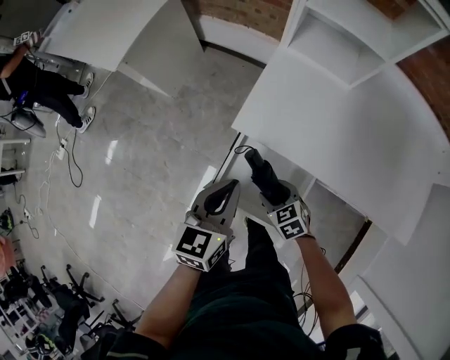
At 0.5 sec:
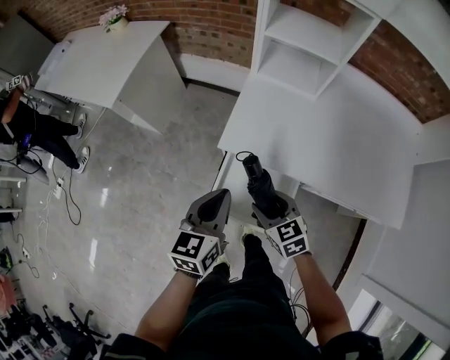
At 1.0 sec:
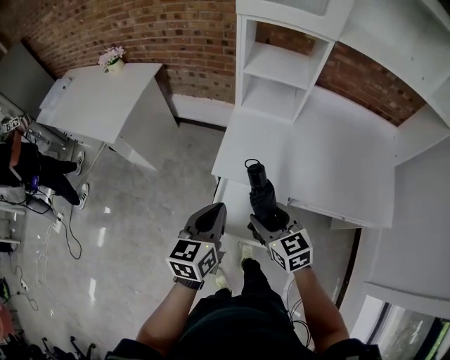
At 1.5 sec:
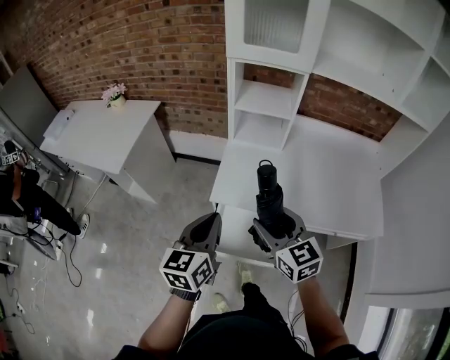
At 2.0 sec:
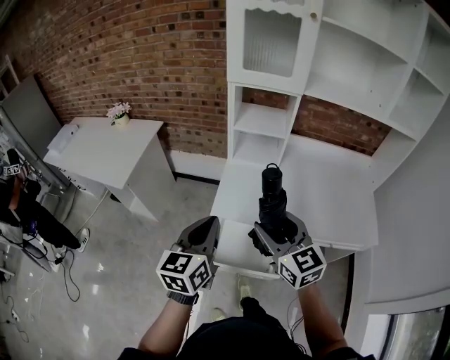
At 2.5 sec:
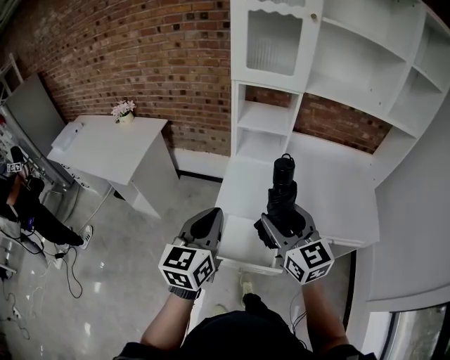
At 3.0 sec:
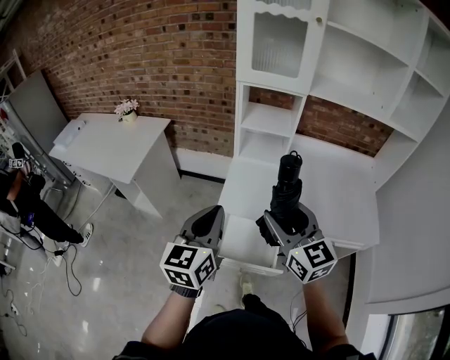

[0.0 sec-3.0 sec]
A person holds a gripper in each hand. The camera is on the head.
0.0 sec to 1.5 sec: The left gripper shifts roughly 20 cm upward. Meanwhile the right gripper is displaced upward by some 35 cm, and tilts its fingers roughly 40 degrees upward.
1.5 sec to 3.0 sec: The two grippers go approximately 10 cm upward.

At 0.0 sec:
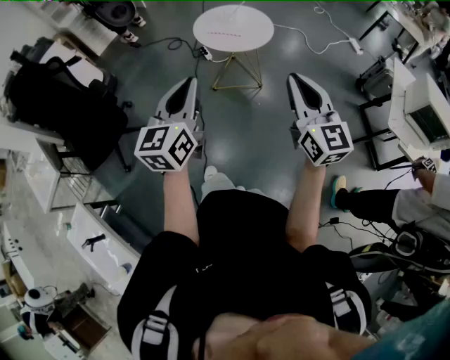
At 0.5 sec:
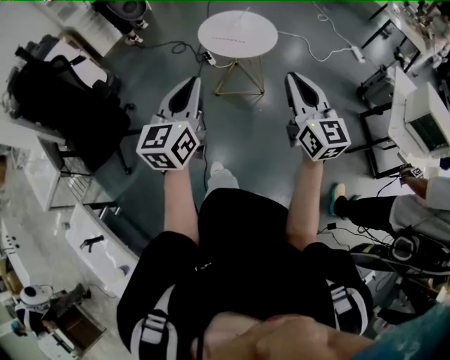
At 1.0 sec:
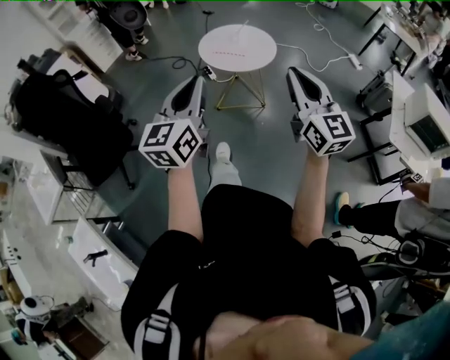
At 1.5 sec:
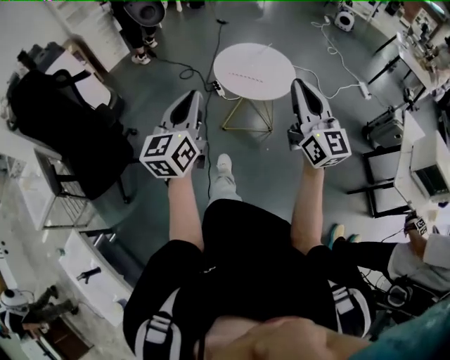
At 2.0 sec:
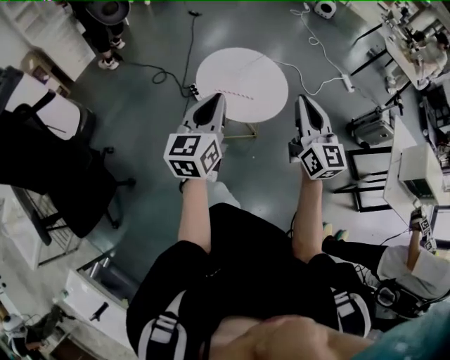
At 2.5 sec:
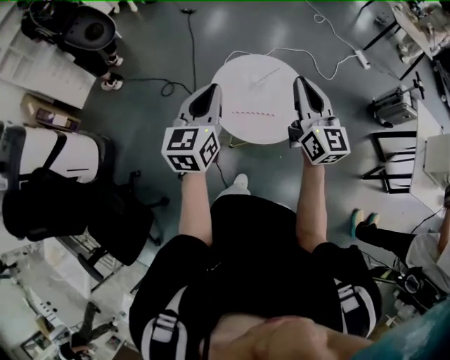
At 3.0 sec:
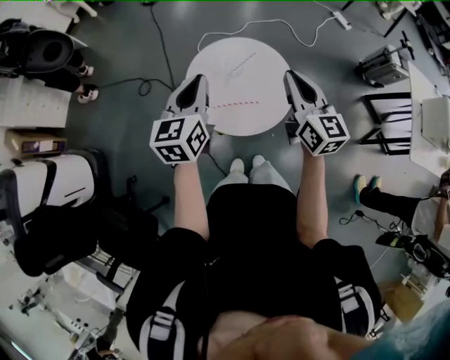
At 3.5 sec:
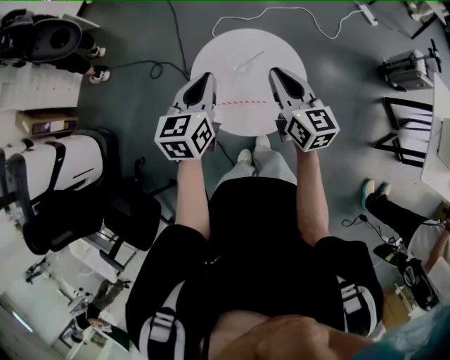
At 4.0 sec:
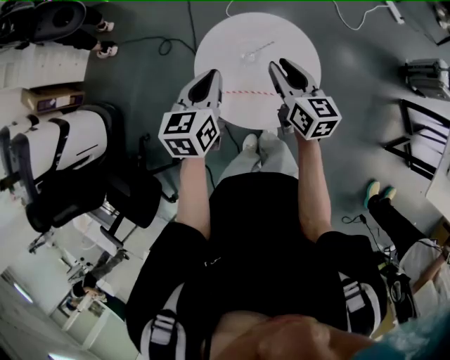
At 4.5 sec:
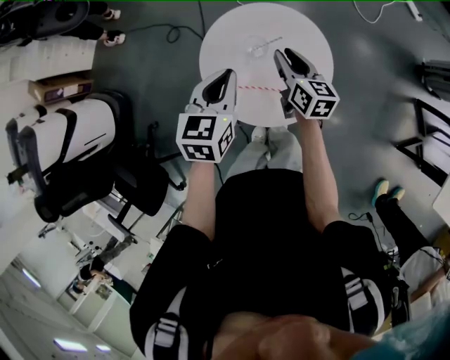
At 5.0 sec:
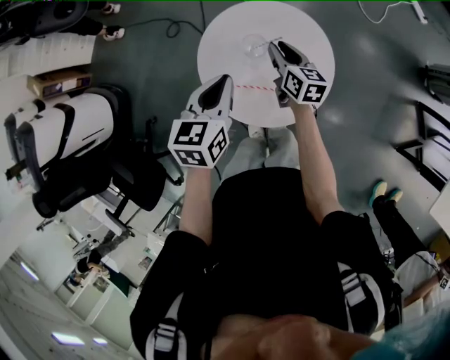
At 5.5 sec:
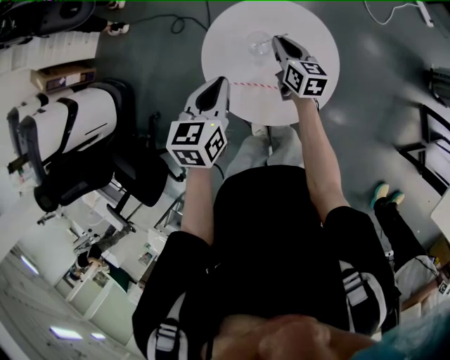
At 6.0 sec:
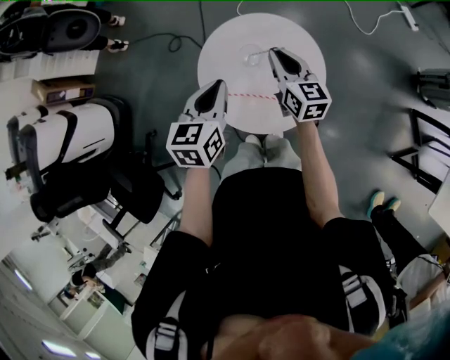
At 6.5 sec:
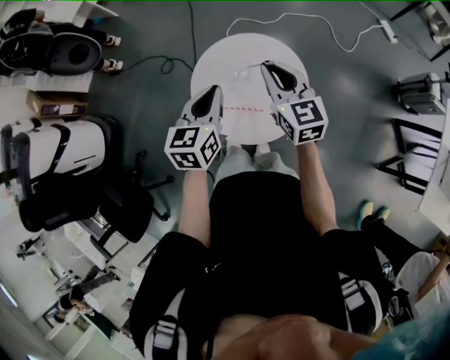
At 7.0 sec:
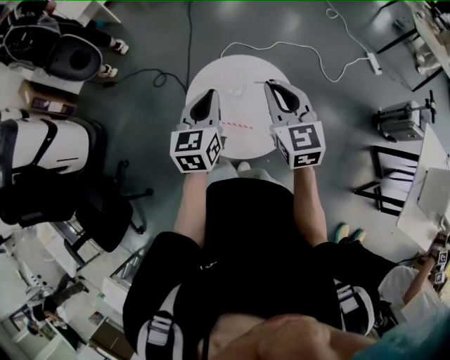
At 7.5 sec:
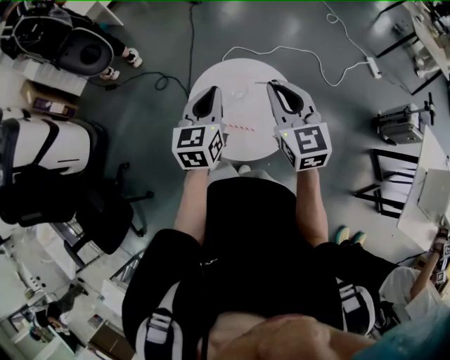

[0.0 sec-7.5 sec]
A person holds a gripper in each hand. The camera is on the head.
0.0 sec to 2.0 sec: Both grippers are carried forward, roughly 40 cm.
2.0 sec to 4.0 sec: The left gripper shifts approximately 40 cm forward, and swivels some 30 degrees; the right gripper goes some 40 cm forward and downward, rotates roughly 40 degrees, and opens up.
4.0 sec to 5.5 sec: The right gripper shifts some 15 cm downward and forward.
5.5 sec to 7.5 sec: The right gripper goes roughly 30 cm upward and backward, and rotates around the line of its fingers by roughly 40 degrees, counterclockwise from behind. Meanwhile the left gripper shifts about 10 cm upward, and changes its angle by about 20 degrees.

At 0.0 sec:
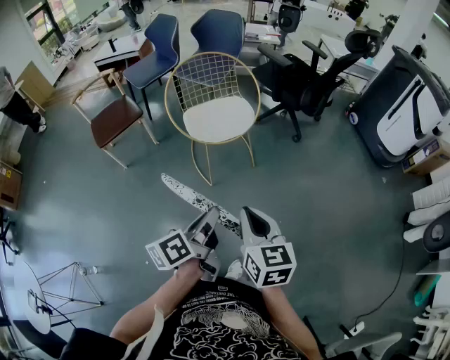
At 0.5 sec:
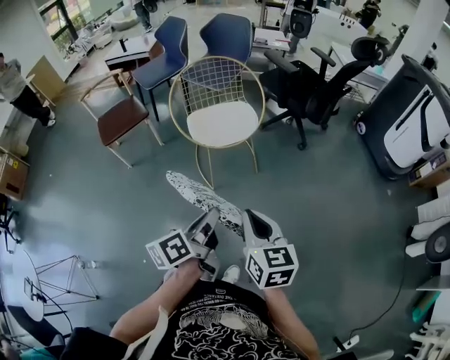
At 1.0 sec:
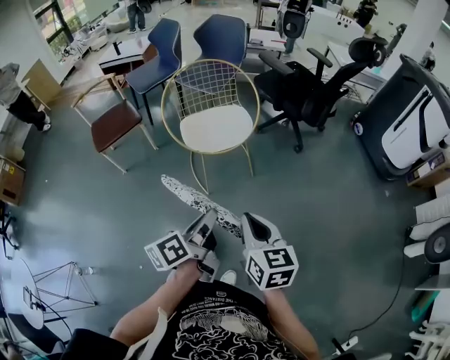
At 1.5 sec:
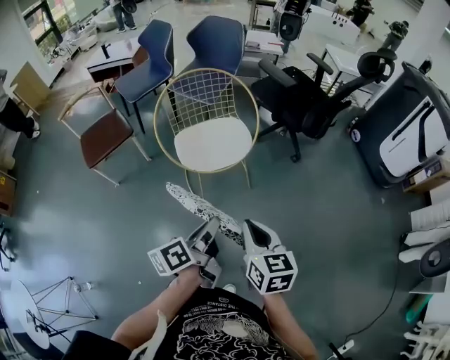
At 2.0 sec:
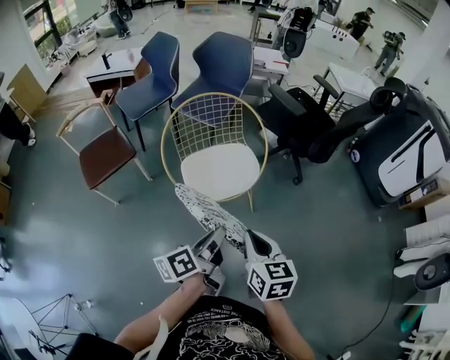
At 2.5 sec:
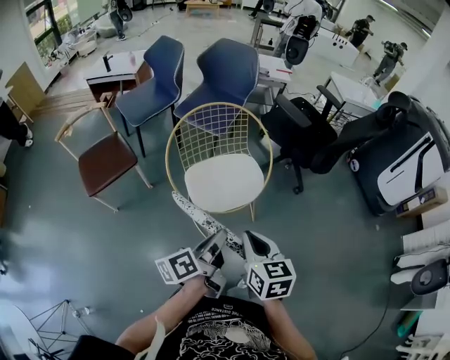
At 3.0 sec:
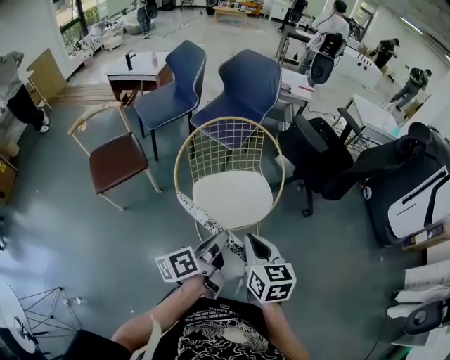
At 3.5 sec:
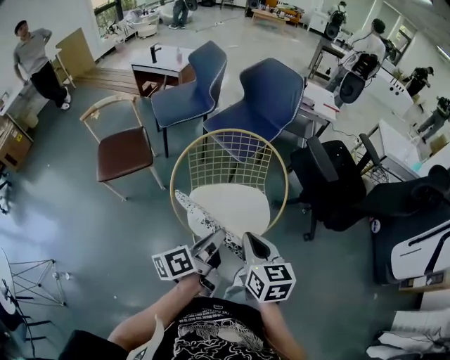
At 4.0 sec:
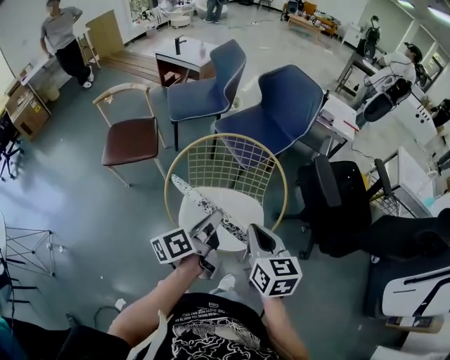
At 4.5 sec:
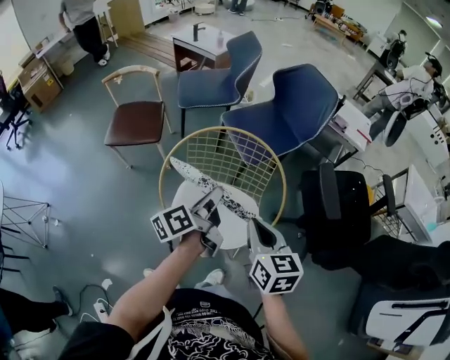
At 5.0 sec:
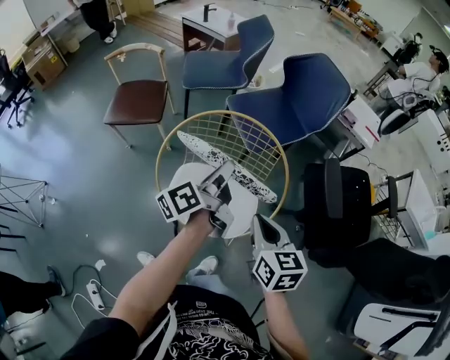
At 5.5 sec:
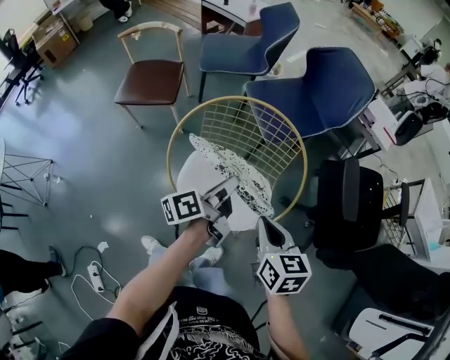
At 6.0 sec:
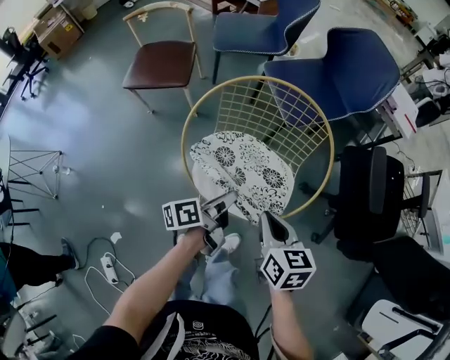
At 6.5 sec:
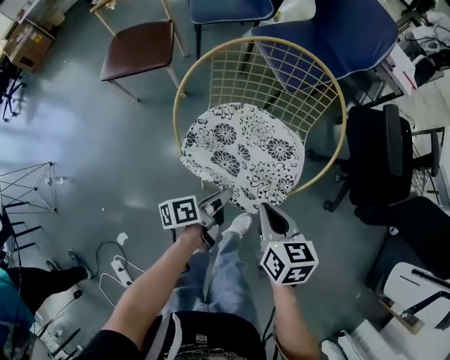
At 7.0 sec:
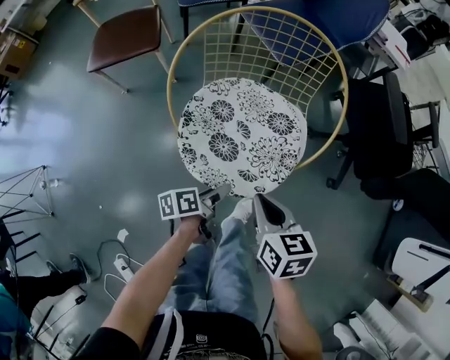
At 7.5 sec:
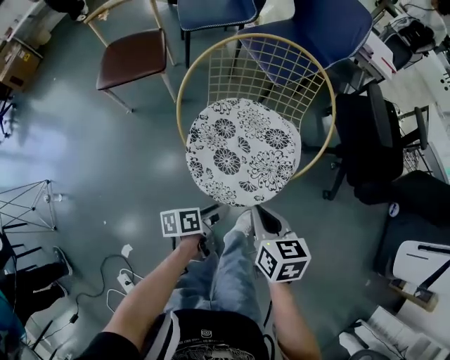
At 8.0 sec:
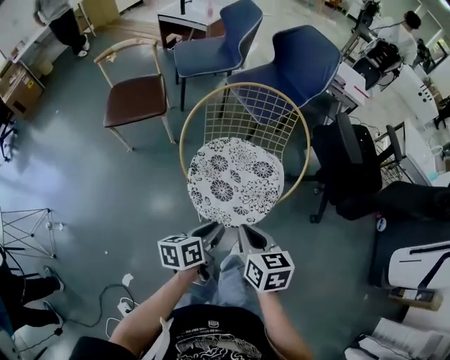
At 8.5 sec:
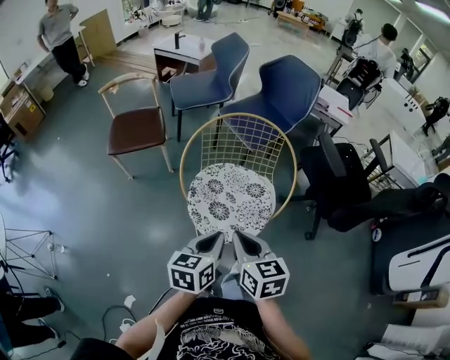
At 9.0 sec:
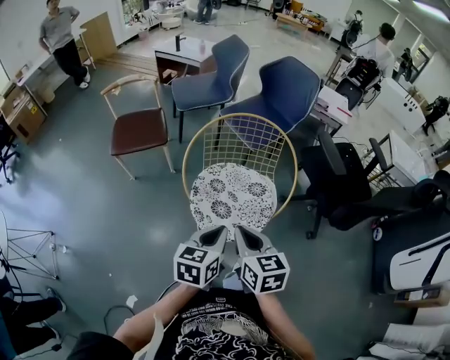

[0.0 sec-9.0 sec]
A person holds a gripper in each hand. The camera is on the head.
0.0 sec to 2.0 sec: The grippers both shift forward by roughly 25 cm.
2.0 sec to 4.5 sec: The left gripper shifts by some 35 cm, and rotates some 40 degrees; the right gripper moves some 35 cm, and rotates about 30 degrees.
4.5 sec to 7.0 sec: The right gripper is displaced downward, backward and to the left by approximately 25 cm, while the left gripper goes about 40 cm downward and backward, changes its angle by approximately 40 degrees, and opens its fingers.
7.0 sec to 9.0 sec: The right gripper shifts approximately 15 cm upward, while the left gripper goes some 30 cm upward, rolls clockwise, seen from behind, by roughly 60 degrees, and closes its fingers.

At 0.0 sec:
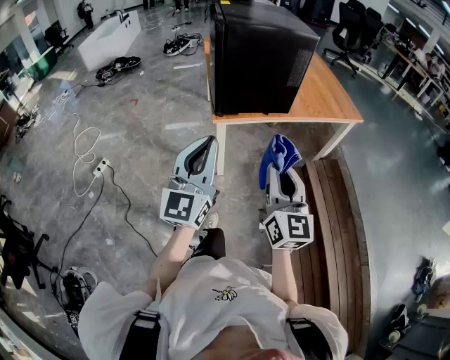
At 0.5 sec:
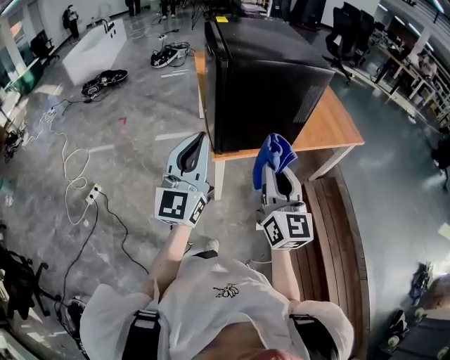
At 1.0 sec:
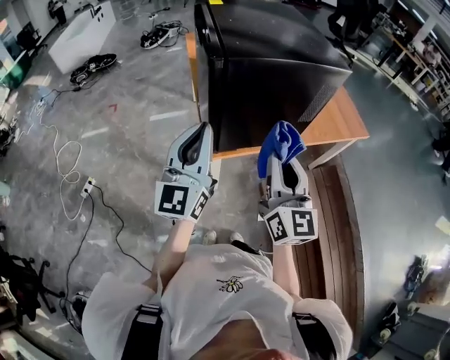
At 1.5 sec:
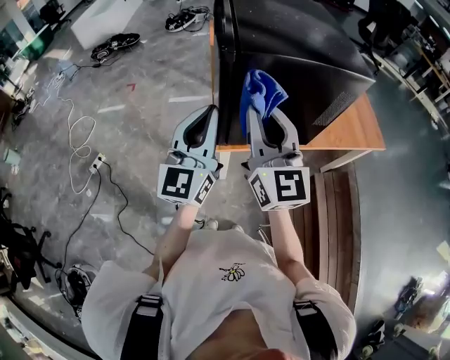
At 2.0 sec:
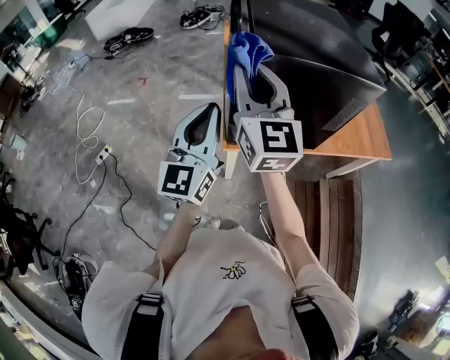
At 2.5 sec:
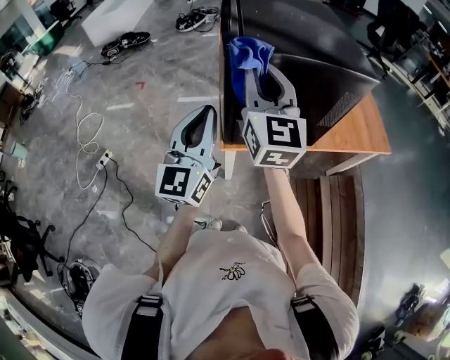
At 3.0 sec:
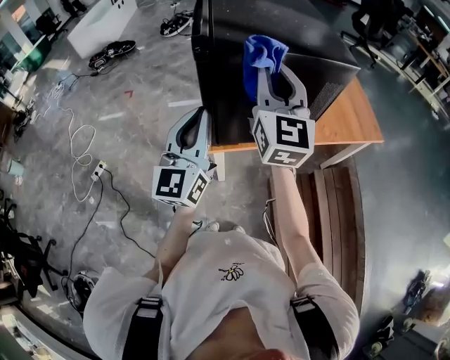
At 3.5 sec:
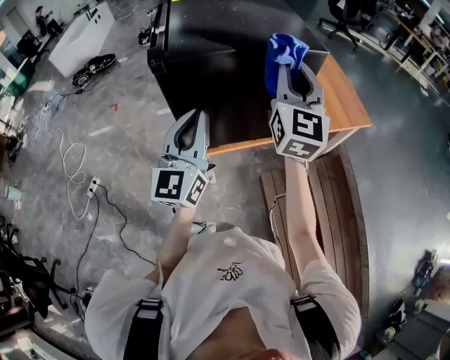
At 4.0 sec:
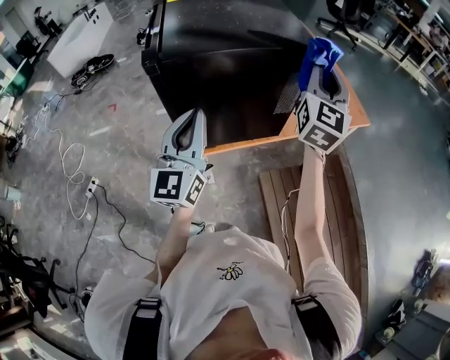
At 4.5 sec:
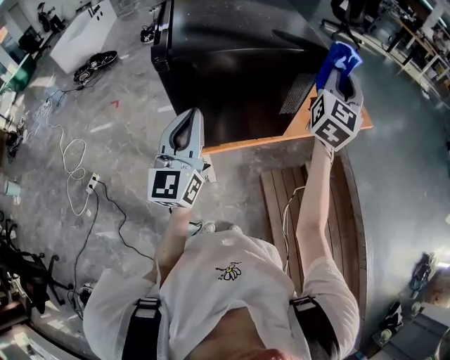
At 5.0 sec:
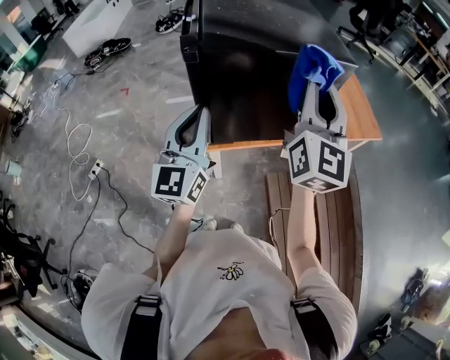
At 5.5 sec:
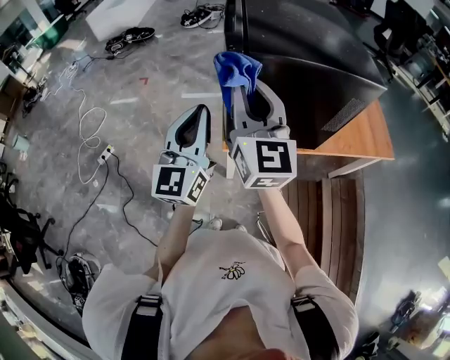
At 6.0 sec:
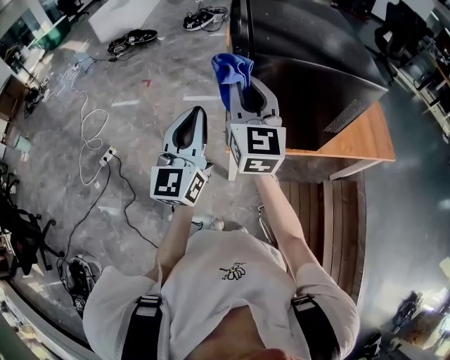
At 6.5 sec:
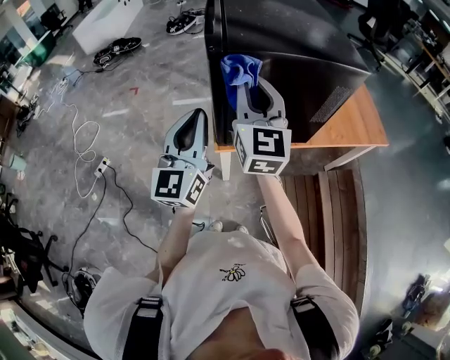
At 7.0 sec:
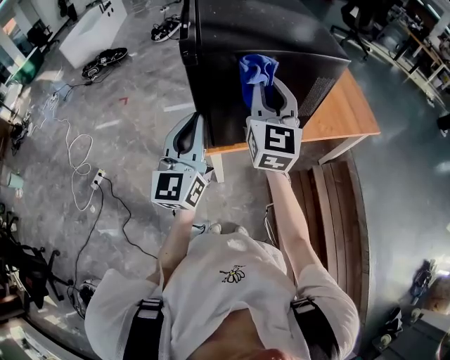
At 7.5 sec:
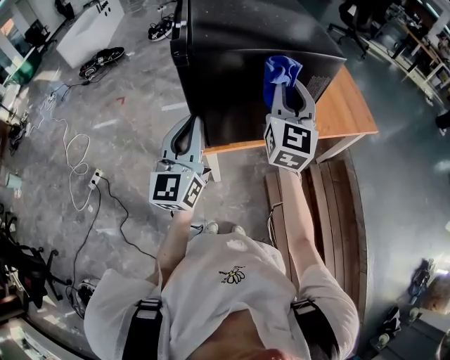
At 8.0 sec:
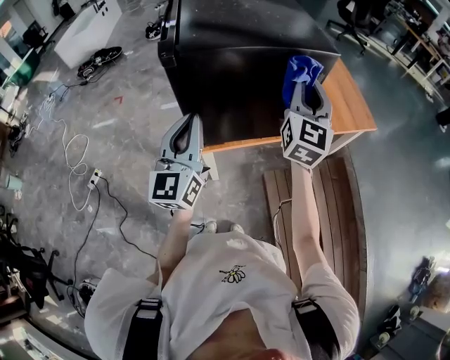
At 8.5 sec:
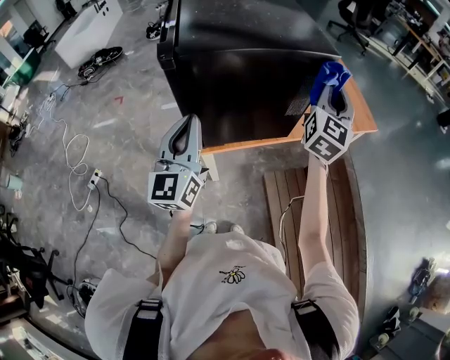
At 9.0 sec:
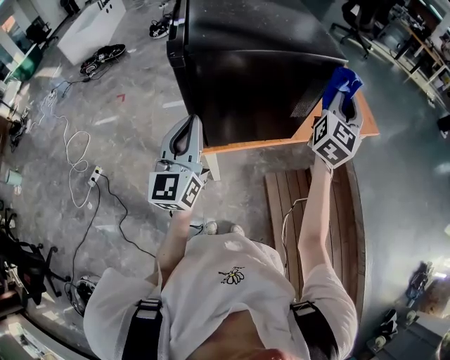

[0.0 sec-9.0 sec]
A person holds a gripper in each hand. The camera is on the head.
0.0 sec to 2.0 sec: The left gripper heads forward, covering about 30 cm, while the right gripper travels forward and to the left by some 40 cm.
2.0 sec to 4.5 sec: The right gripper moves about 40 cm, and turns by about 50 degrees; the left gripper shifts by some 10 cm.
4.5 sec to 7.0 sec: The right gripper turns by about 30 degrees.
7.0 sec to 9.0 sec: The right gripper is displaced to the right by roughly 25 cm, and rotates approximately 30 degrees.
